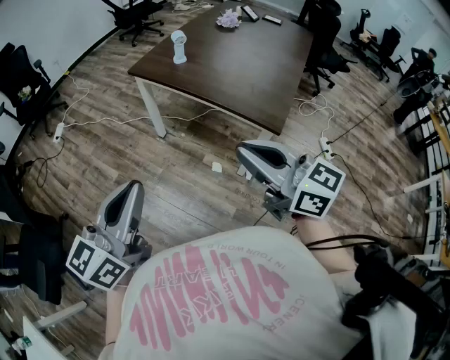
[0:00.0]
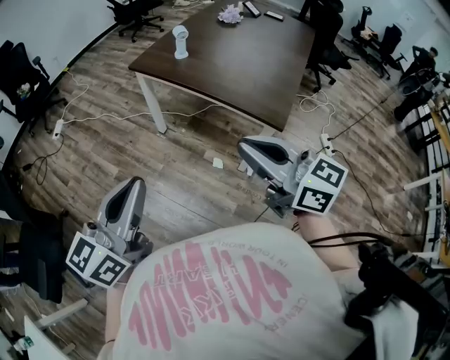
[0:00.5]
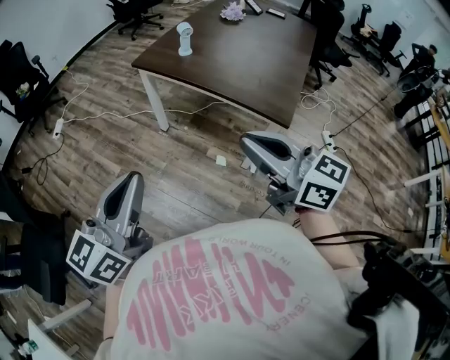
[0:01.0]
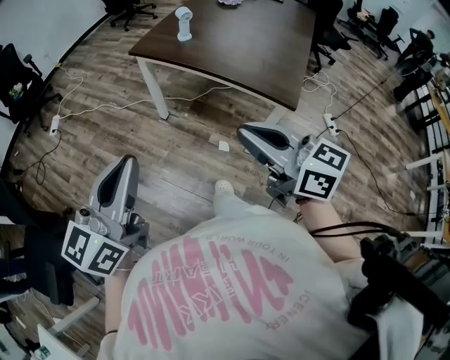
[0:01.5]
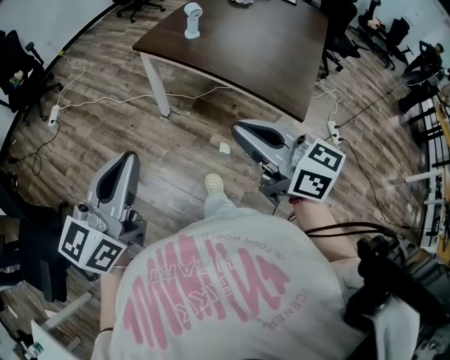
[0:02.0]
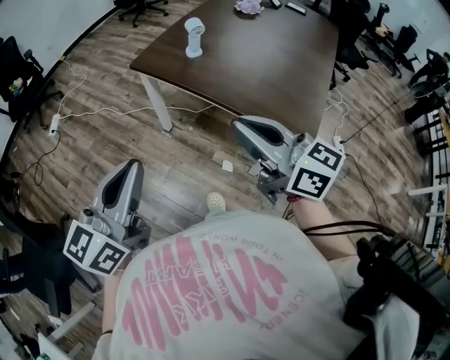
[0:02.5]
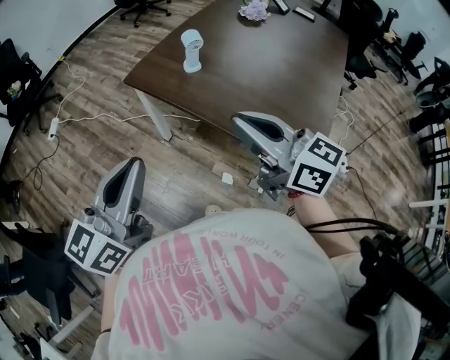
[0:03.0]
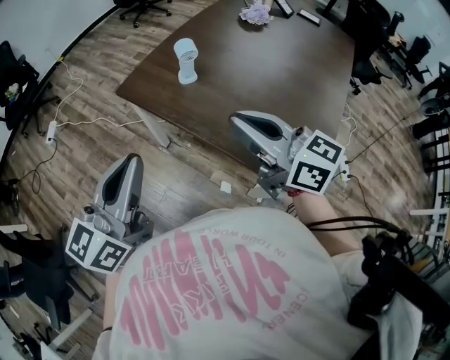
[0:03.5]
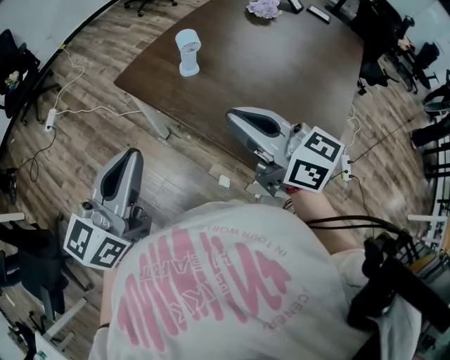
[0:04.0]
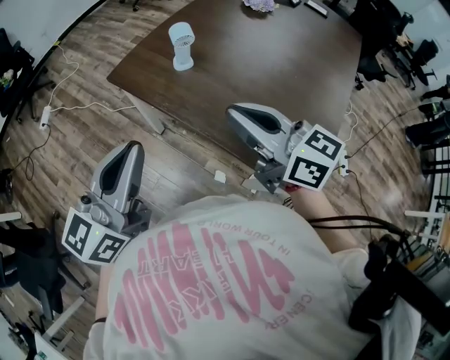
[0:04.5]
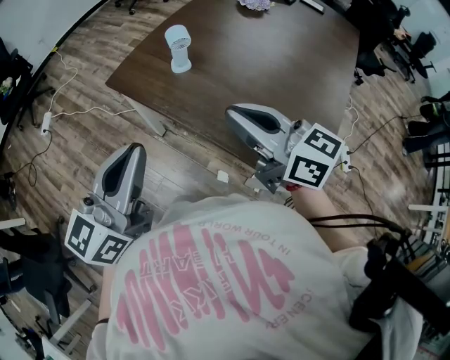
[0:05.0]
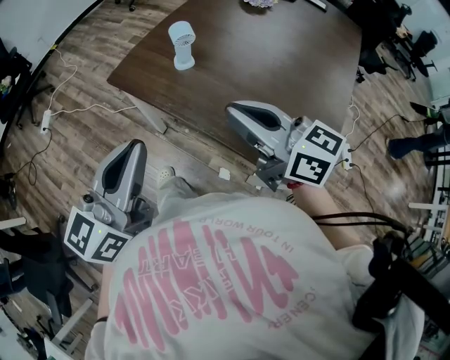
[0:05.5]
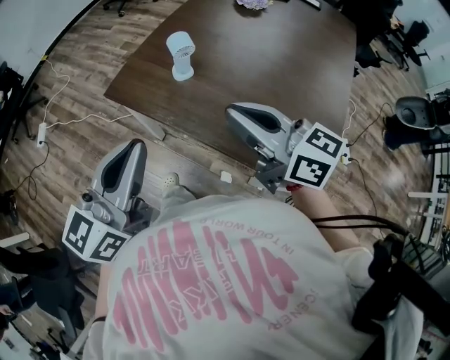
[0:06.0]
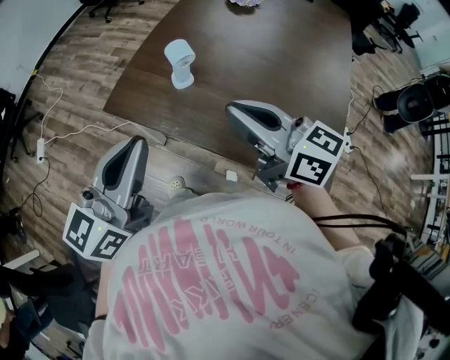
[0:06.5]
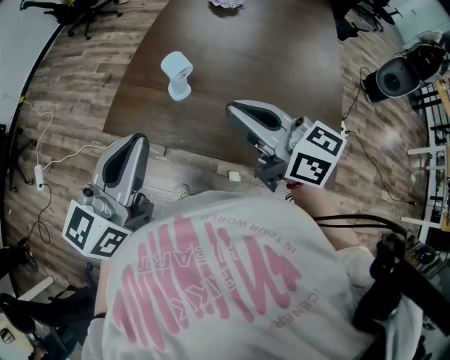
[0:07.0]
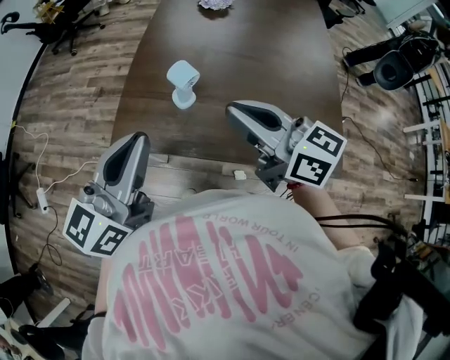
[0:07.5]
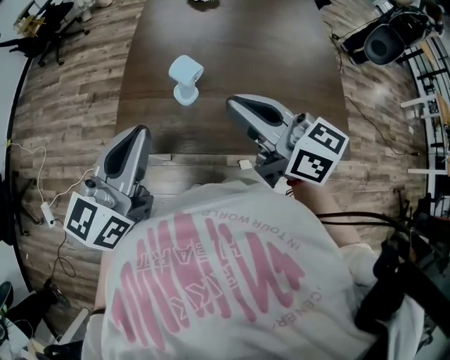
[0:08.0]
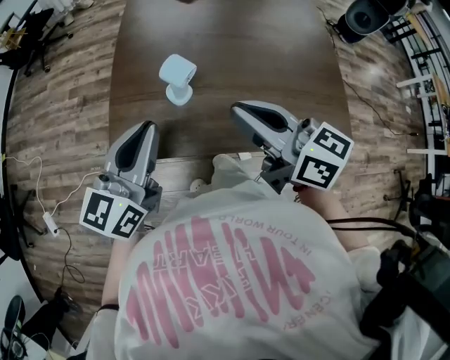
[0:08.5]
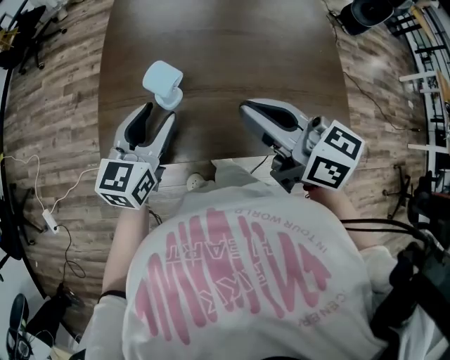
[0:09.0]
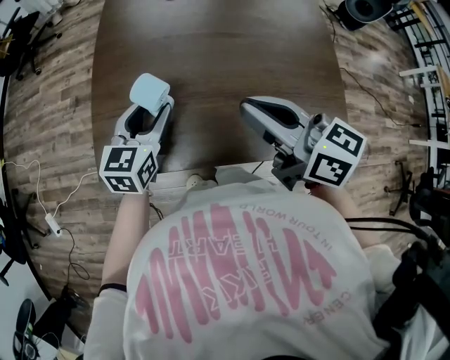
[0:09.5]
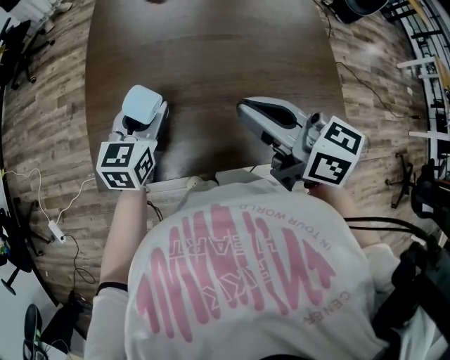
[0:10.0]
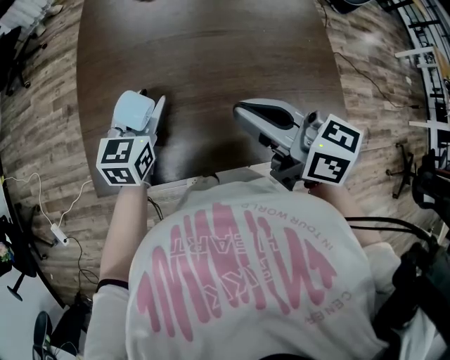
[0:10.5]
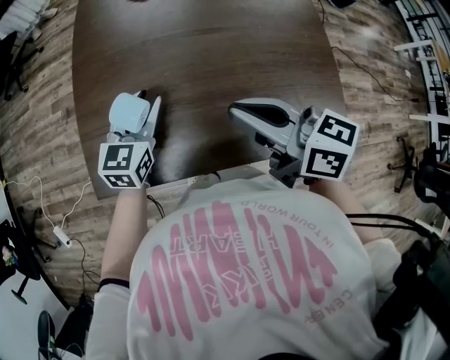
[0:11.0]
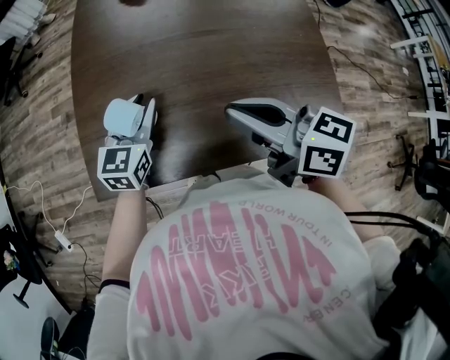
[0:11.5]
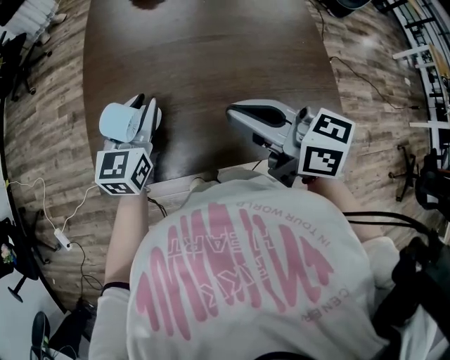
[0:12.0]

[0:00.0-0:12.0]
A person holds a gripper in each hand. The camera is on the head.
0:00.0 to 0:02.0: Both grippers move forward and to the left, roughly 10 cm.
0:02.0 to 0:04.0: The left gripper travels forward and to the right by approximately 30 cm. The right gripper shifts approximately 30 cm forward.
0:04.0 to 0:06.0: The left gripper is displaced forward by approximately 5 cm.
0:06.0 to 0:08.0: The left gripper shifts by roughly 20 cm, and changes its angle by approximately 30 degrees; the right gripper moves some 10 cm, and swivels roughly 30 degrees.
0:08.0 to 0:10.0: The left gripper moves downward, forward and to the right, some 25 cm, turns by roughly 30 degrees, and opens its fingers; the right gripper moves to the right, roughly 10 cm.
0:10.0 to 0:12.0: The left gripper closes its fingers.

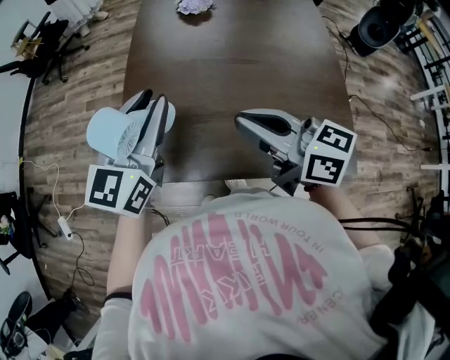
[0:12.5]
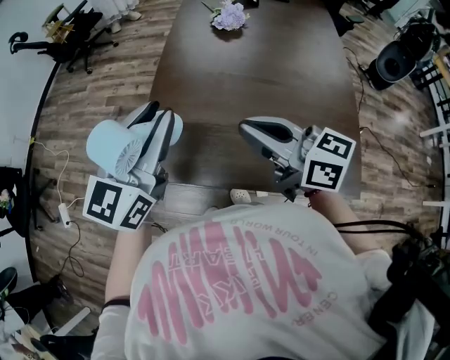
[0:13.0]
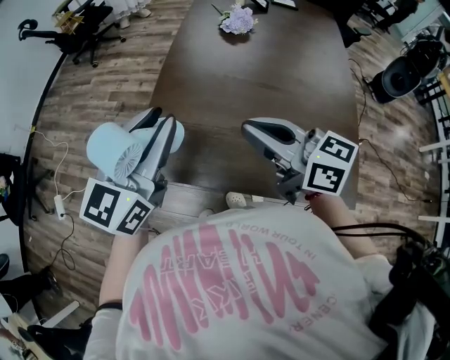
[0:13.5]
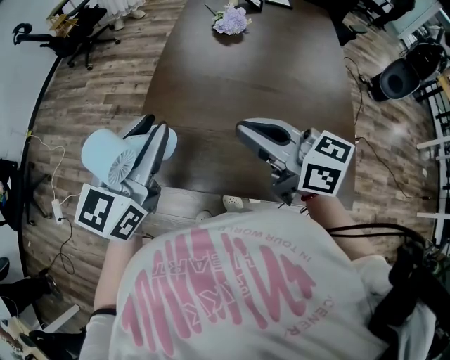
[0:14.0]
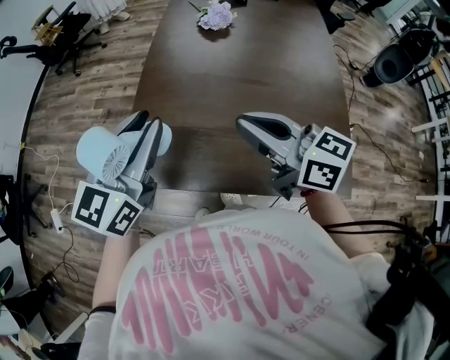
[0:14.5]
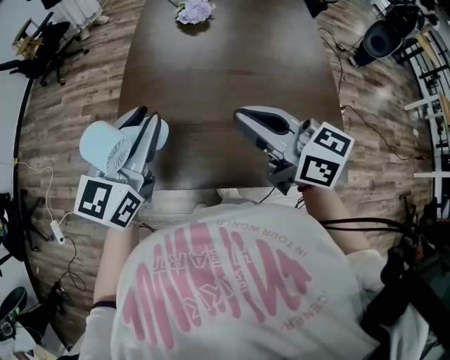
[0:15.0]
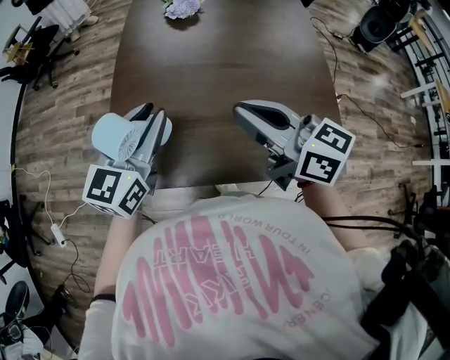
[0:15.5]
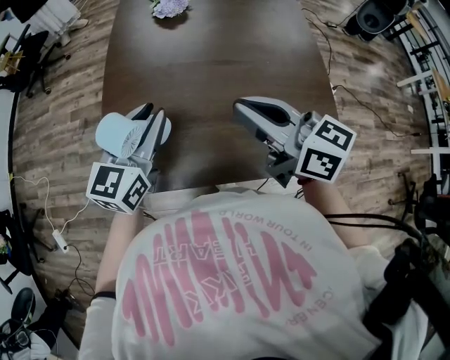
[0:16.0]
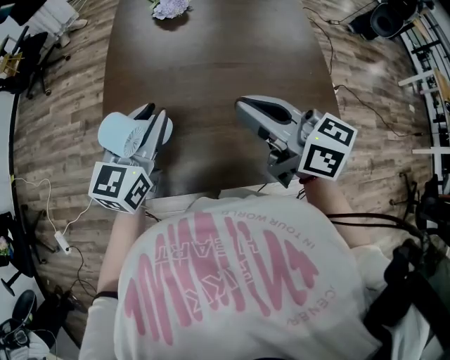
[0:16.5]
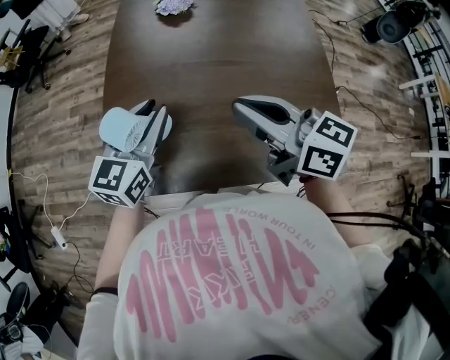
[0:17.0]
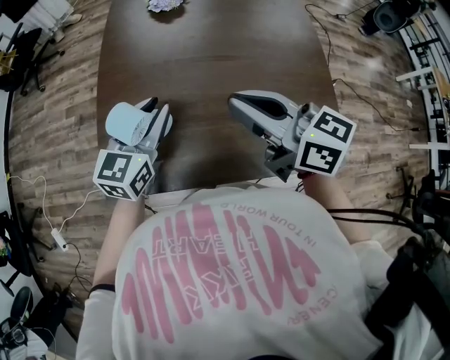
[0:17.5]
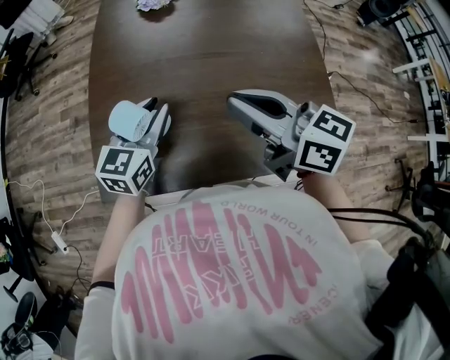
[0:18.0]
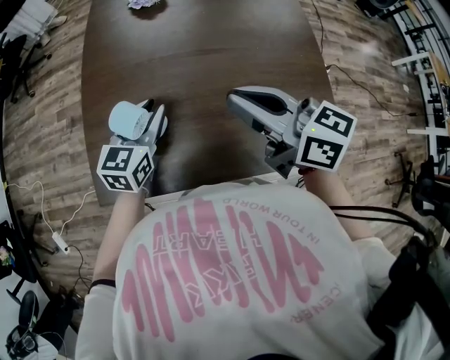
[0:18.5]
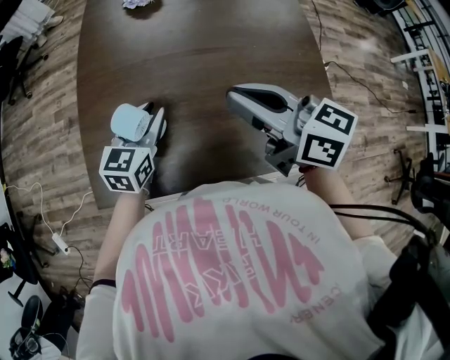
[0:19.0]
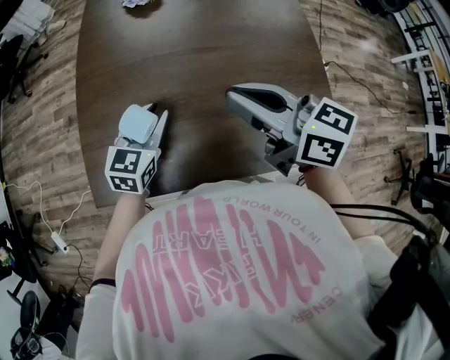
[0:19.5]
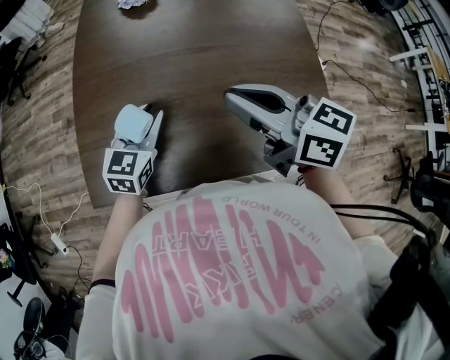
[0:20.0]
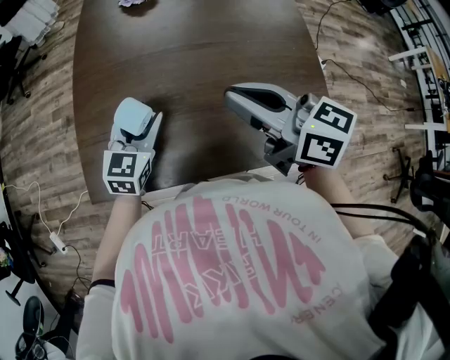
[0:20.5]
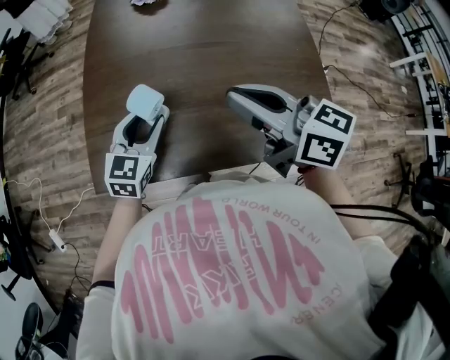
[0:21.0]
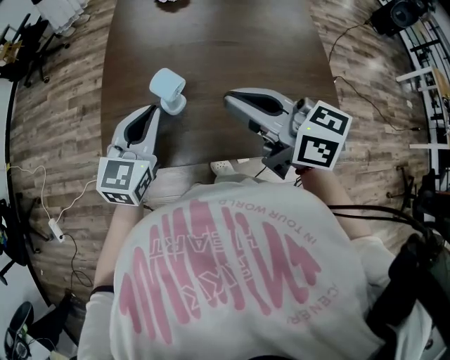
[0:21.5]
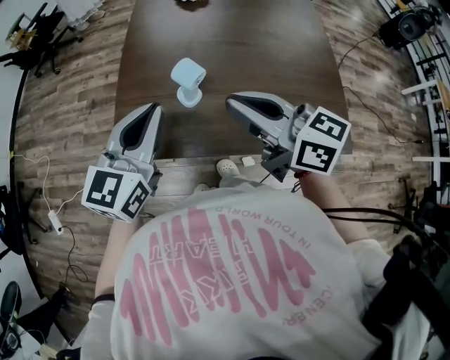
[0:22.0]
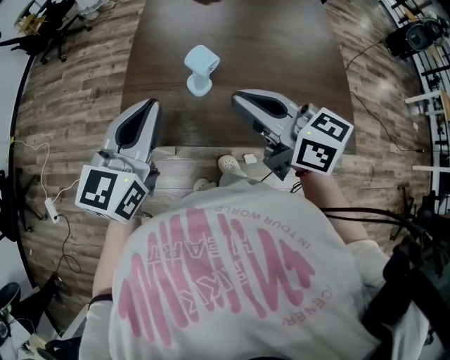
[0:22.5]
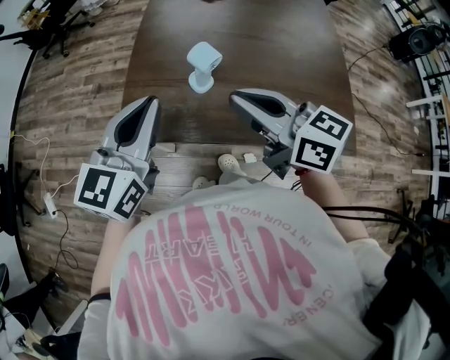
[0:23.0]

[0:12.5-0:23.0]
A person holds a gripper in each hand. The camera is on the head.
0:12.5 to 0:14.5: The left gripper is displaced to the left by some 5 cm.
0:14.5 to 0:16.5: The right gripper shifts roughly 5 cm to the right, while the left gripper shifts about 15 cm downward, to the right and forward.
0:16.5 to 0:19.0: The left gripper moves downward, approximately 10 cm.
0:19.0 to 0:21.0: The grippers move only a little.
0:21.0 to 0:23.0: The left gripper moves upward, backward and to the left, about 20 cm, rotates some 20 degrees, and closes its fingers. The right gripper goes roughly 10 cm to the left and backward.

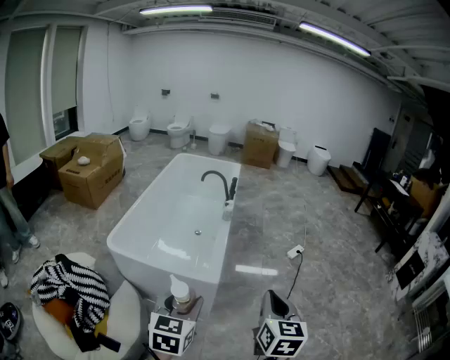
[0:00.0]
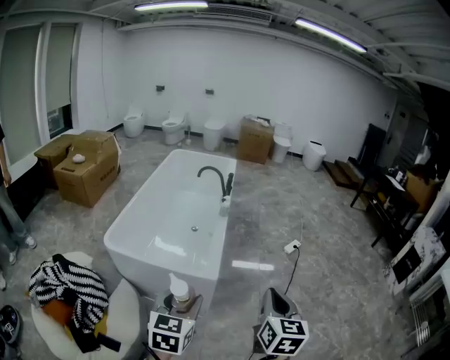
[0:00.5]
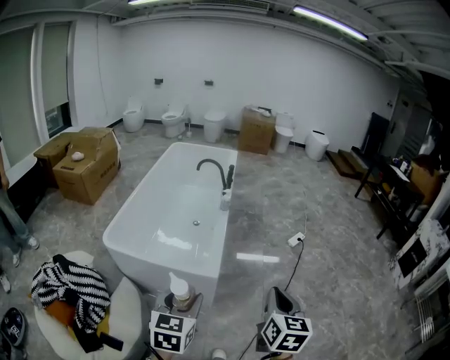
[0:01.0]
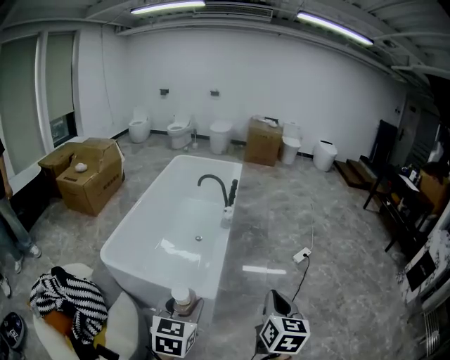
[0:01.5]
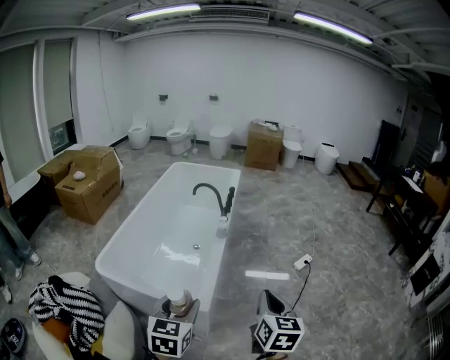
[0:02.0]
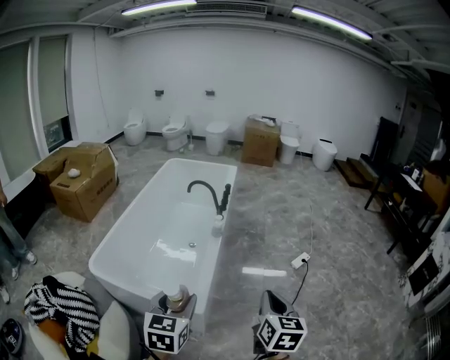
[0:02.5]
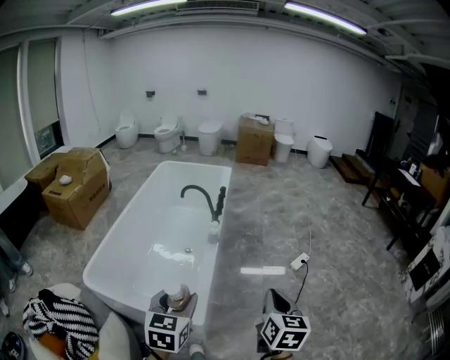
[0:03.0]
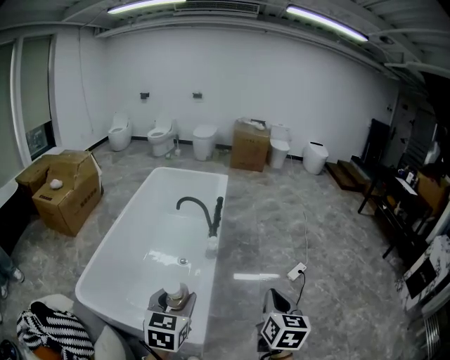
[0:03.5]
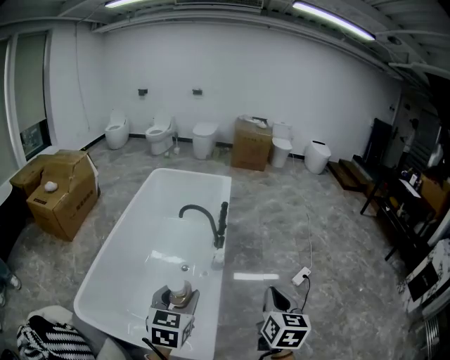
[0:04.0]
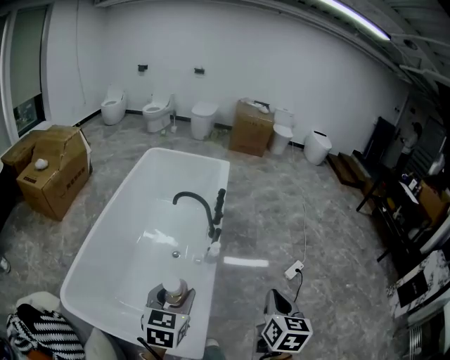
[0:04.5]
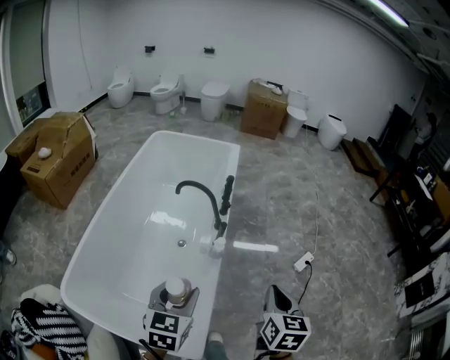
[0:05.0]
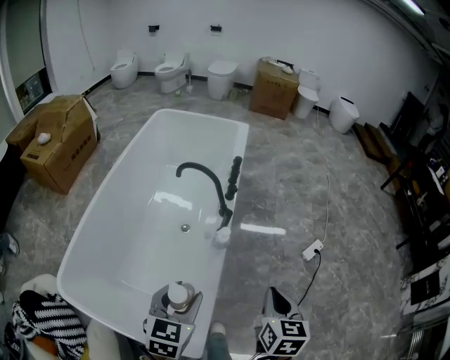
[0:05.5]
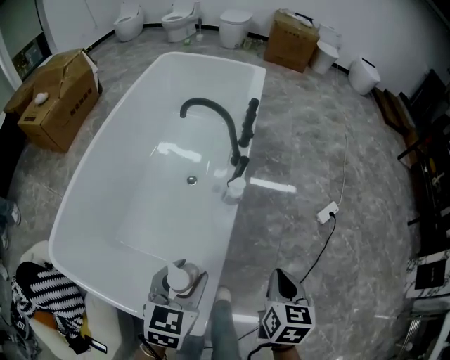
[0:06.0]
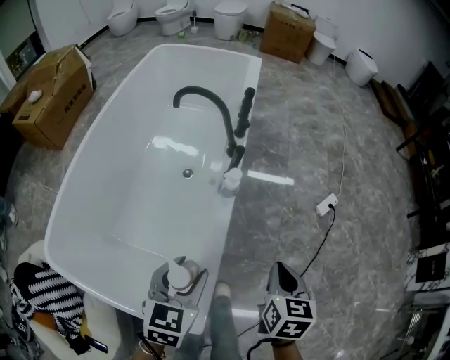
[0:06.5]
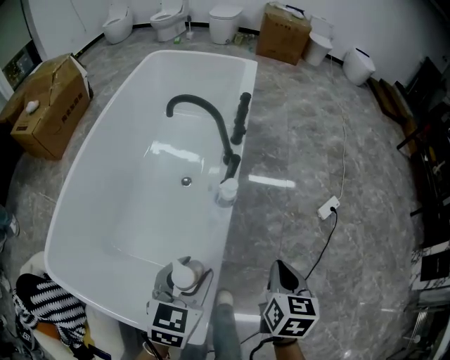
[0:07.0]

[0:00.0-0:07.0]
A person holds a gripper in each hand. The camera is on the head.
0:00.0 to 0:02.0: Both grippers travel together forward, some 20 cm.
0:02.0 to 0:03.5: The two grippers go some 20 cm forward.
0:03.5 to 0:05.0: The left gripper moves forward and downward, approximately 20 cm; the right gripper travels forward by approximately 20 cm.
0:05.0 to 0:07.0: Both grippers move downward, approximately 20 cm.
